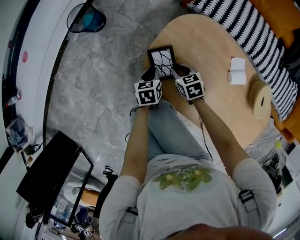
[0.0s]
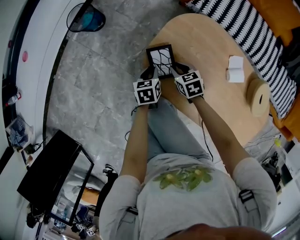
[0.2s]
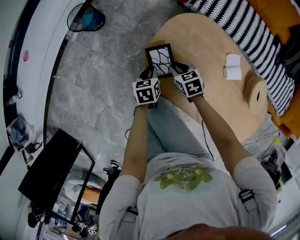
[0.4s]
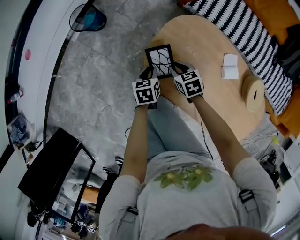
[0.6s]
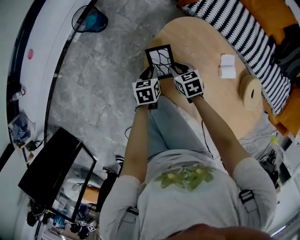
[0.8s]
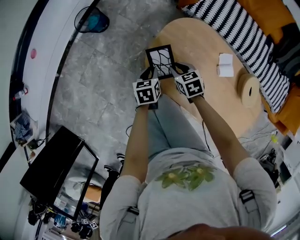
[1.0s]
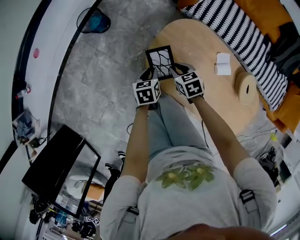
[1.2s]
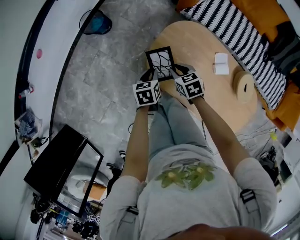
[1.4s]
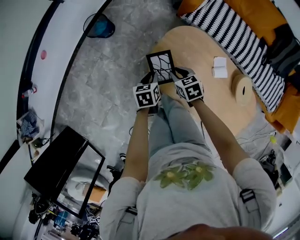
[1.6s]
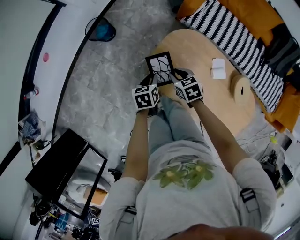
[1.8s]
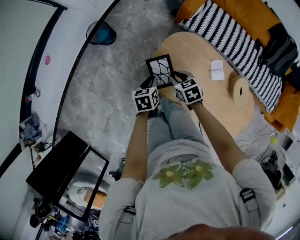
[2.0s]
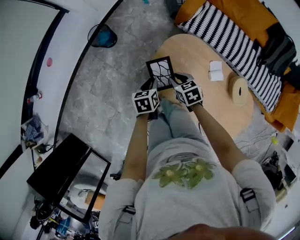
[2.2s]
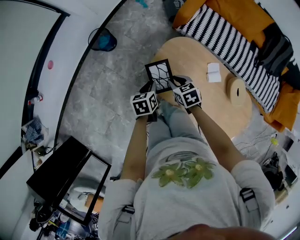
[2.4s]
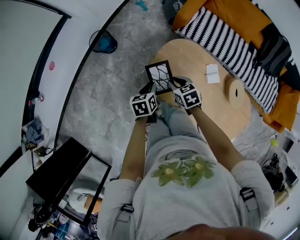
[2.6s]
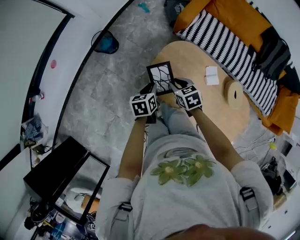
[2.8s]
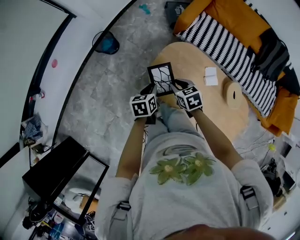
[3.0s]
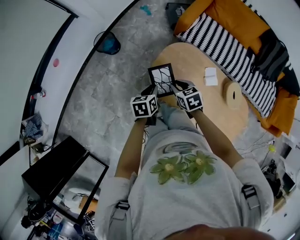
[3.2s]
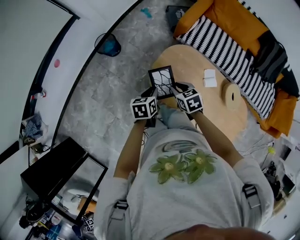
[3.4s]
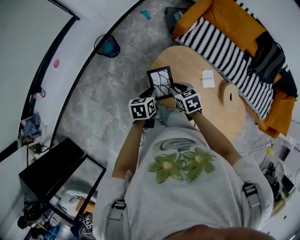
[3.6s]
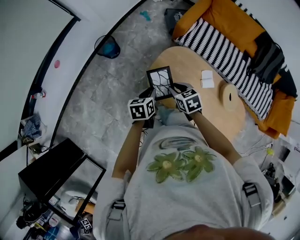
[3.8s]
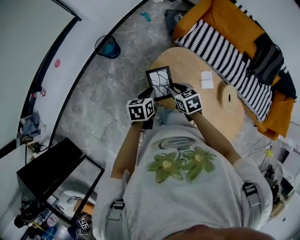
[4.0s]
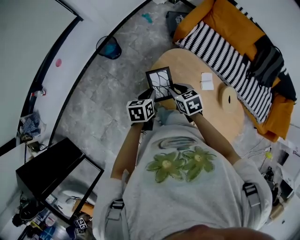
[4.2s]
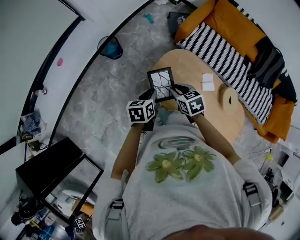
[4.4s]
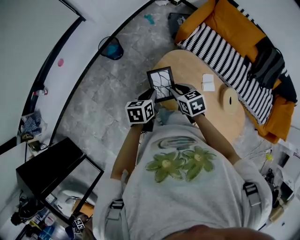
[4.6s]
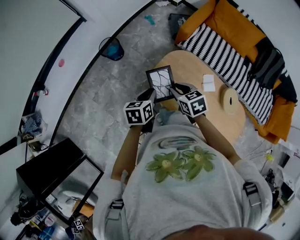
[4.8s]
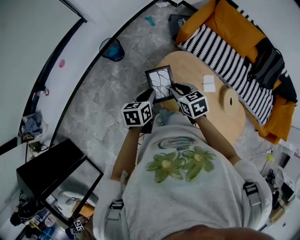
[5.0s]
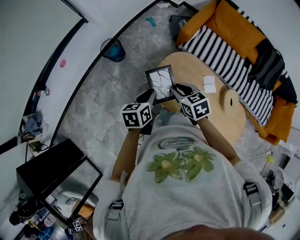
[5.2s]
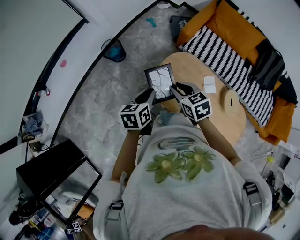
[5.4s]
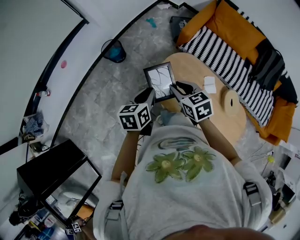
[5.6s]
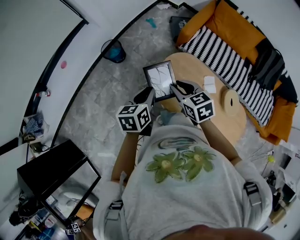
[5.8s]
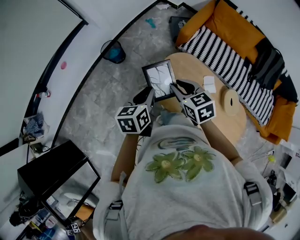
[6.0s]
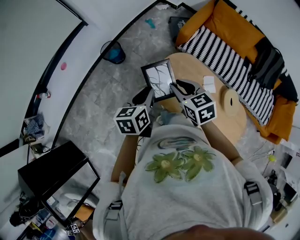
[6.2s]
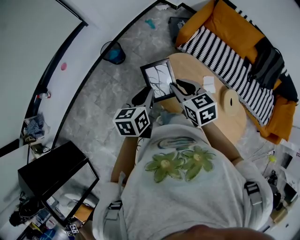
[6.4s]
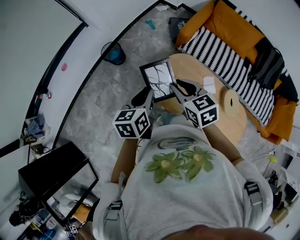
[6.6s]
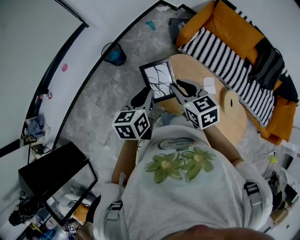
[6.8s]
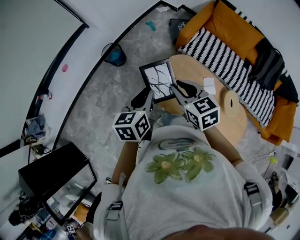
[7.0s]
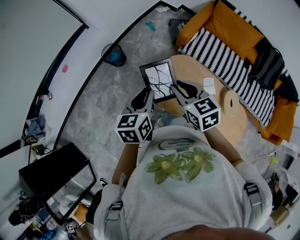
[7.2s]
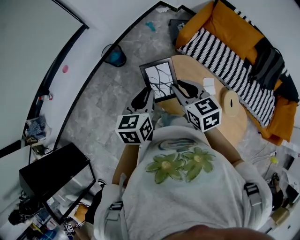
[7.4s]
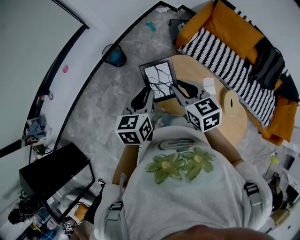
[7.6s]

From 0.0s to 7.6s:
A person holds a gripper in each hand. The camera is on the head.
From 0.0s to 1.6s: Both grippers travel together upward, roughly 20 cm.
From 1.6s to 3.0s: Both grippers move upward, some 10 cm.
From 3.0s to 4.6s: The grippers both shift upward by some 10 cm.
From 4.6s to 6.0s: The two grippers go approximately 10 cm upward.
From 6.0s to 7.6s: Both grippers travel together upward, roughly 5 cm.

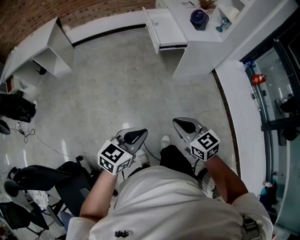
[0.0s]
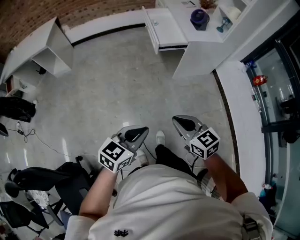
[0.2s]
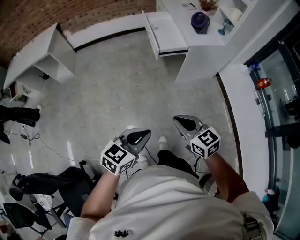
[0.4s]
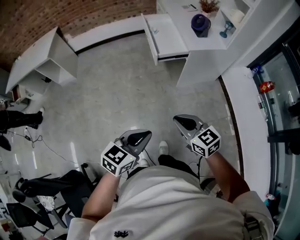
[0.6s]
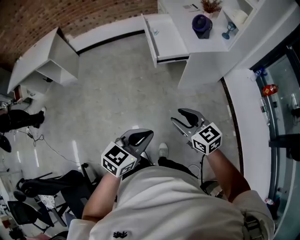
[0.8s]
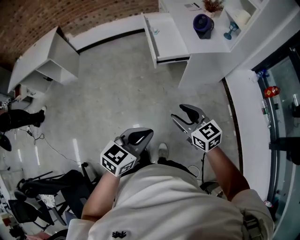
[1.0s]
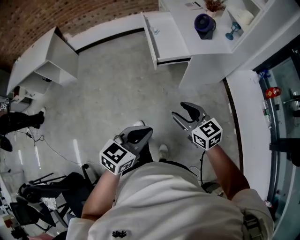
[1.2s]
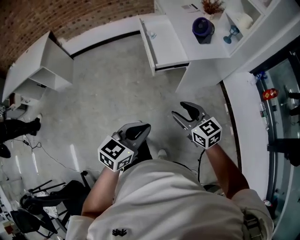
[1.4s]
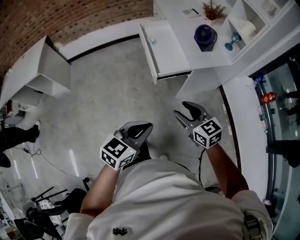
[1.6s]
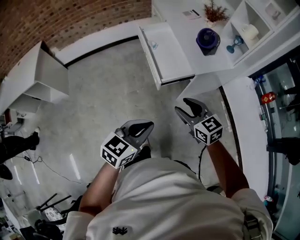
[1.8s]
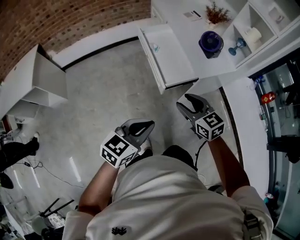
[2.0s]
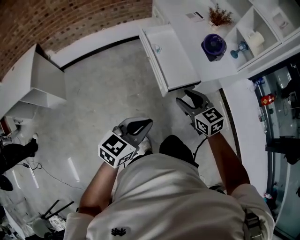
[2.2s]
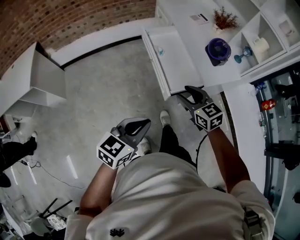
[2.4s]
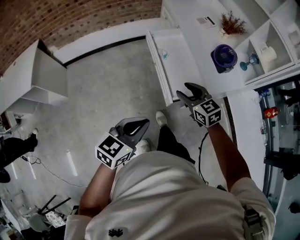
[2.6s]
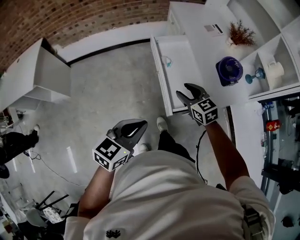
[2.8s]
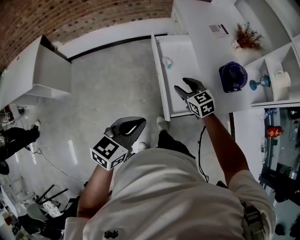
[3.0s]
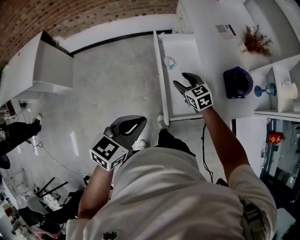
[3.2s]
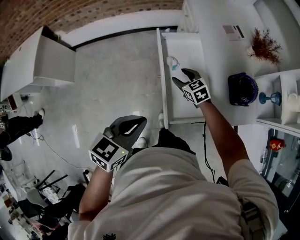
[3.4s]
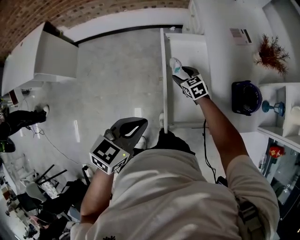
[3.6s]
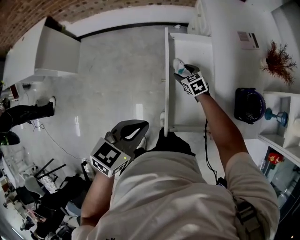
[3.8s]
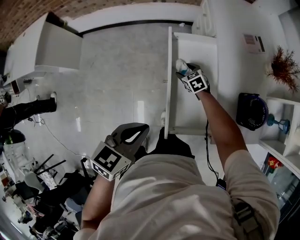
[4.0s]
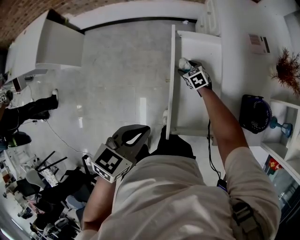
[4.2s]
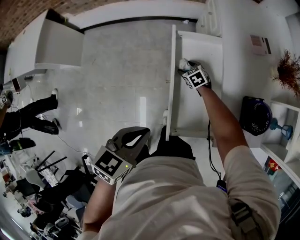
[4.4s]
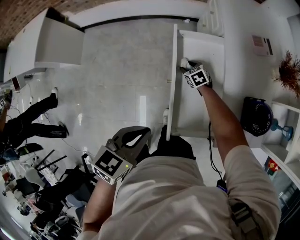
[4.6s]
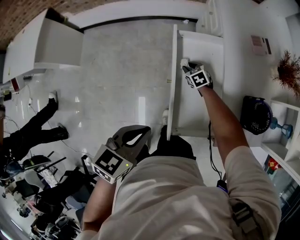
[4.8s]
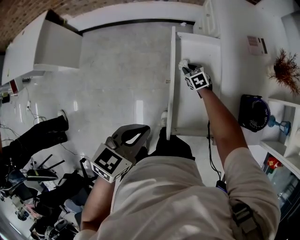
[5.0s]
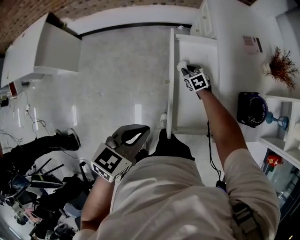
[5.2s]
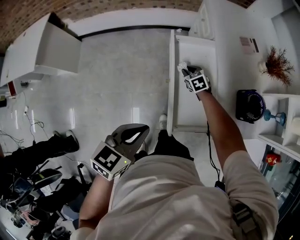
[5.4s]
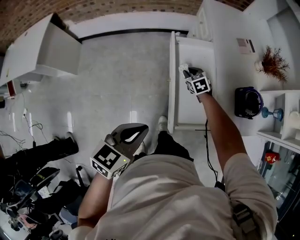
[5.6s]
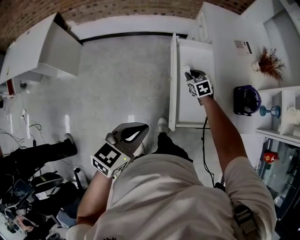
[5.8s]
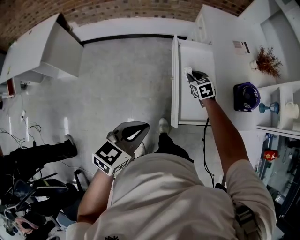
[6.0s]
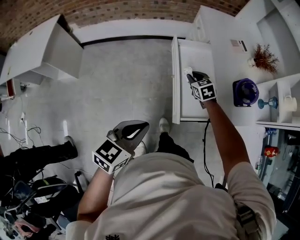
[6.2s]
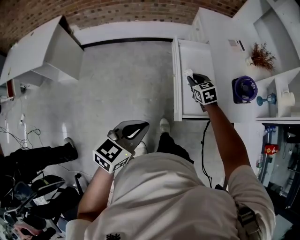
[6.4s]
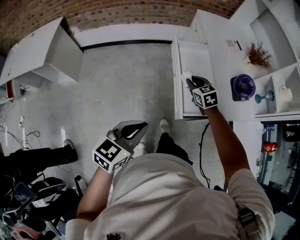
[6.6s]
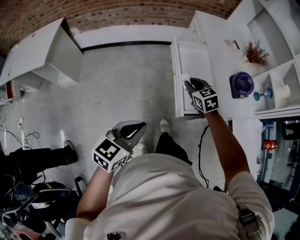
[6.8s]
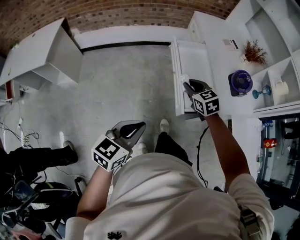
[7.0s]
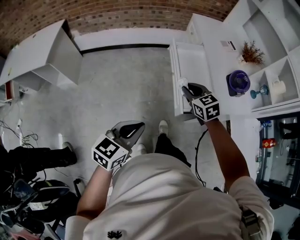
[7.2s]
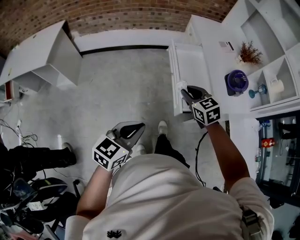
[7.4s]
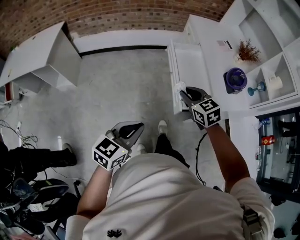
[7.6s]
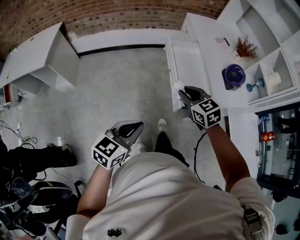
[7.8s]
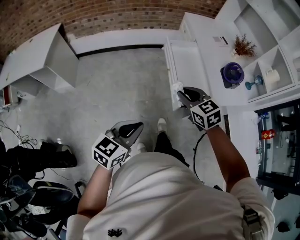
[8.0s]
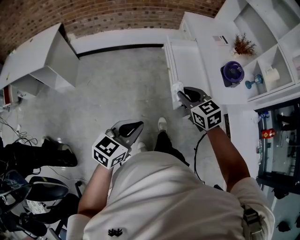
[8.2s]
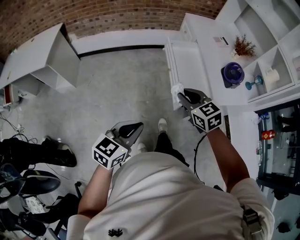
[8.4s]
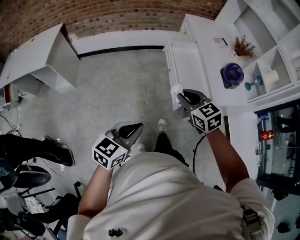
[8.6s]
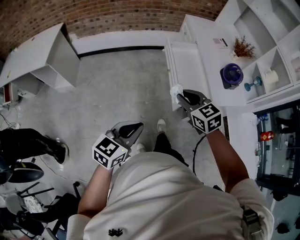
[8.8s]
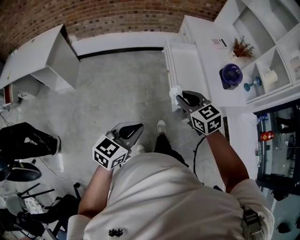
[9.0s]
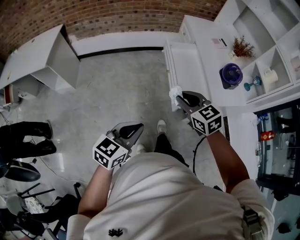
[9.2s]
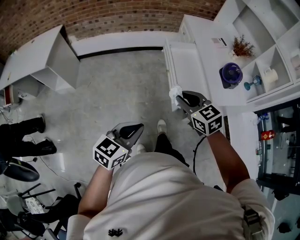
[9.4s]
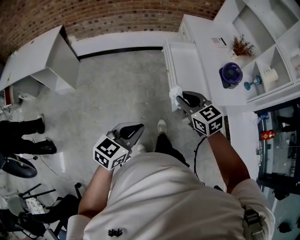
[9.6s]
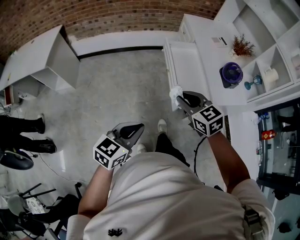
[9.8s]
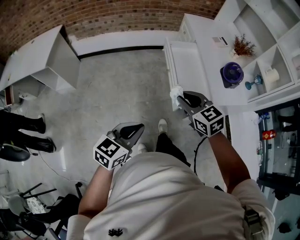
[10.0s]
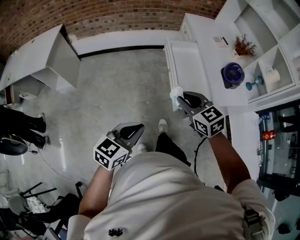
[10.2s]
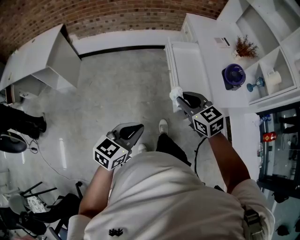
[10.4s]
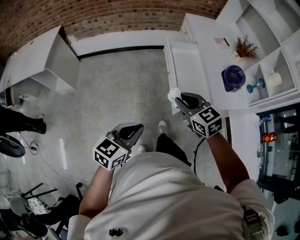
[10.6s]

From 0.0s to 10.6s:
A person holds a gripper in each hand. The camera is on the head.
From 0.0s to 1.6s: Both grippers move forward, about 40 cm. The right gripper opens.
From 1.6s to 3.0s: The grippers both shift forward by roughly 40 cm.
From 3.0s to 4.6s: The right gripper moves downward and forward, some 35 cm, and rotates some 20 degrees, while the left gripper is displaced forward and downward by approximately 15 cm.
From 4.6s to 6.0s: The left gripper shifts approximately 15 cm backward, to the left and upward, while the right gripper heads upward and backward, covering approximately 20 cm, and closes.
From 6.0s to 7.6s: The right gripper moves backward and upward, roughly 35 cm. Meanwhile the left gripper is displaced backward by approximately 15 cm.
From 7.6s to 9.0s: The right gripper heads backward, covering some 5 cm.
From 9.0s to 10.6s: The grippers make only small movements.

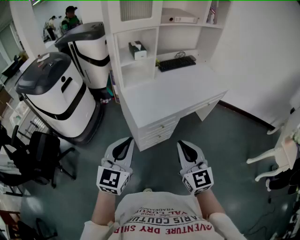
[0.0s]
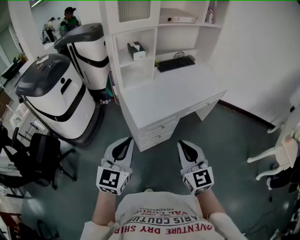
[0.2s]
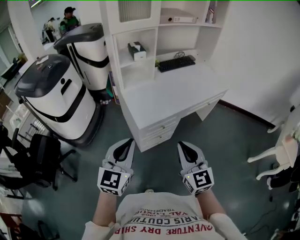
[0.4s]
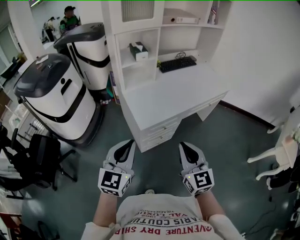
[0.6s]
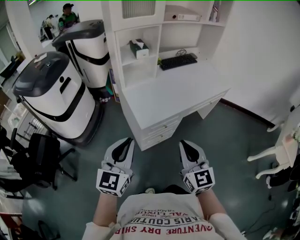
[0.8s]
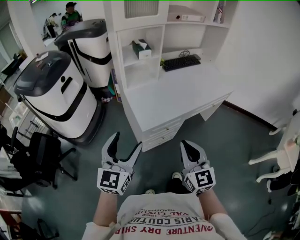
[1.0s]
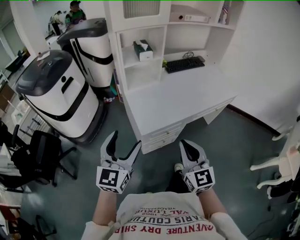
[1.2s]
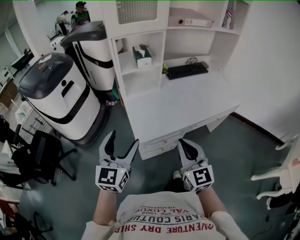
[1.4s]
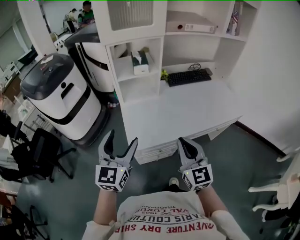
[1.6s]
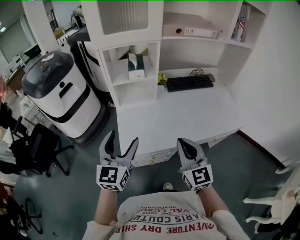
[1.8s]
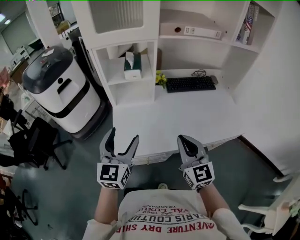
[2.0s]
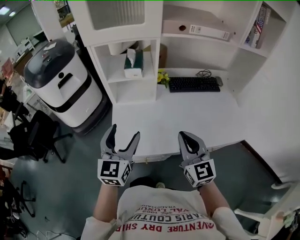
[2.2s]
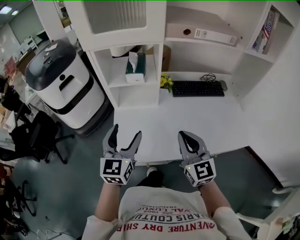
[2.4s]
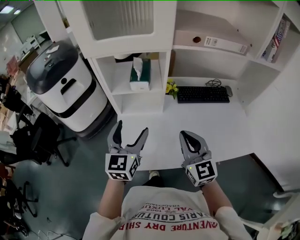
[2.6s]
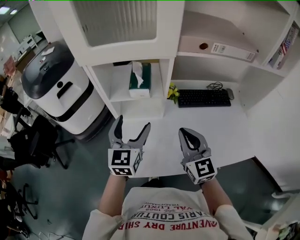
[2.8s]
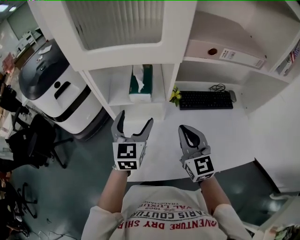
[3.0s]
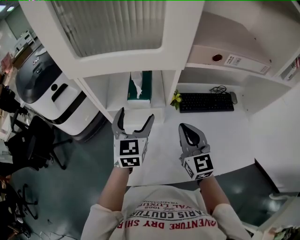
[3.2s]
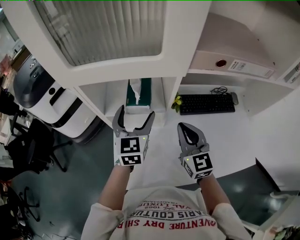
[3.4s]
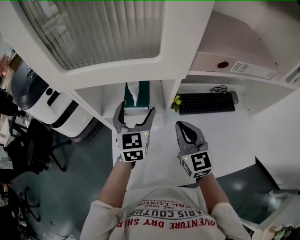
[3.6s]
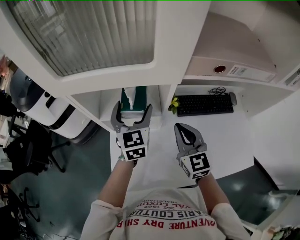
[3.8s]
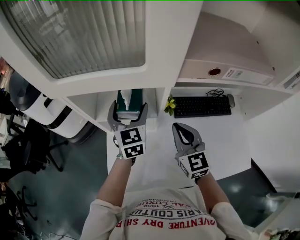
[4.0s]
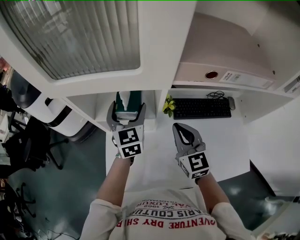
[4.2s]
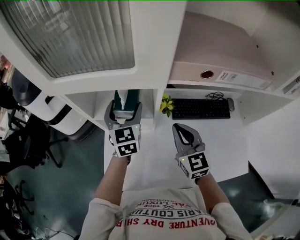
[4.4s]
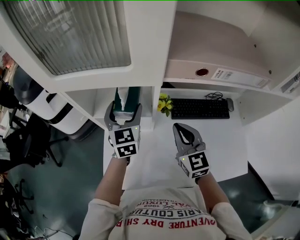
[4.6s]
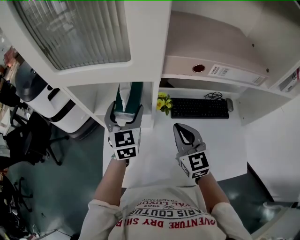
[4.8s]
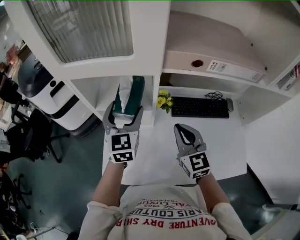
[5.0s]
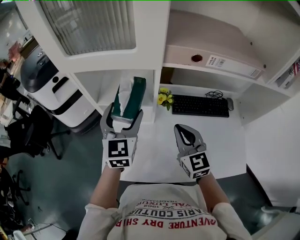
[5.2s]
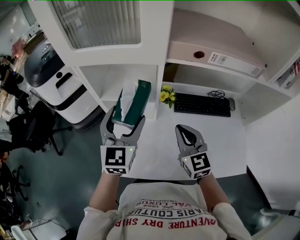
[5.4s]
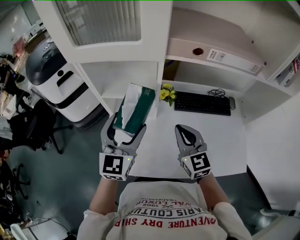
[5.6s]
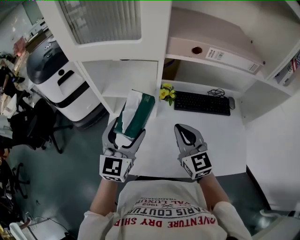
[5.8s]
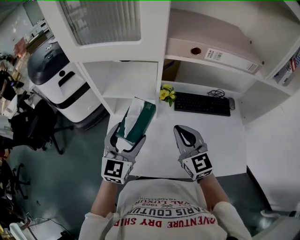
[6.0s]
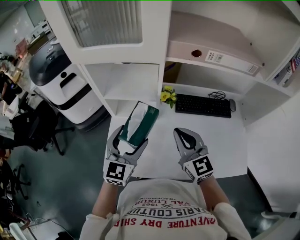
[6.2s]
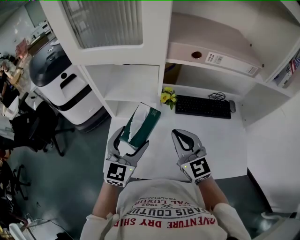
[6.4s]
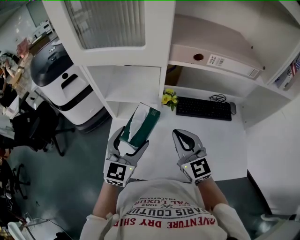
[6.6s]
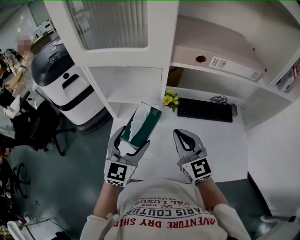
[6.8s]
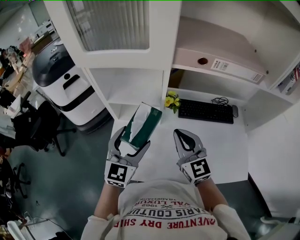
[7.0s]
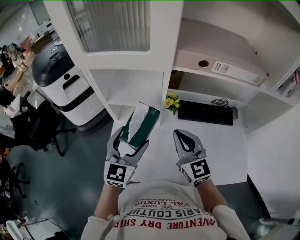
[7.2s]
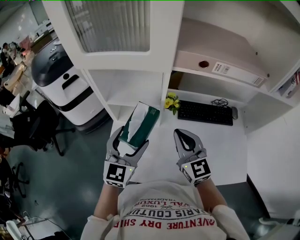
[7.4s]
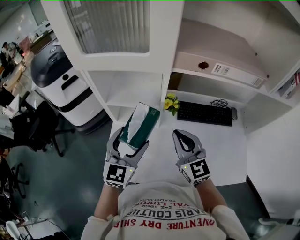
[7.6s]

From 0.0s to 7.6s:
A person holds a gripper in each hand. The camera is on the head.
From 0.0s to 1.6s: The two grippers go approximately 20 cm forward. The left gripper opens.
From 1.6s to 3.0s: The right gripper moves forward, approximately 30 cm, while the left gripper is displaced forward and to the right by roughly 35 cm.
From 3.0s to 4.6s: The left gripper is displaced forward by some 10 cm; the right gripper travels forward and to the right by approximately 10 cm.
From 4.6s to 6.0s: The right gripper heads backward, covering about 10 cm. Meanwhile the left gripper heads backward, covering roughly 20 cm.
From 6.0s to 7.6s: There are only small adjustments of the grippers.
